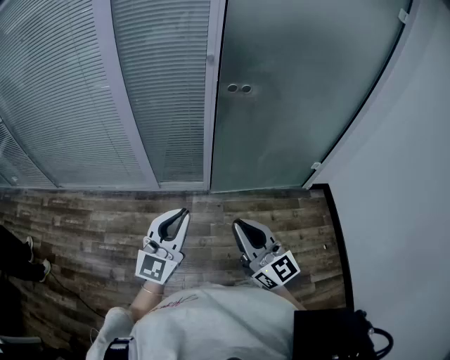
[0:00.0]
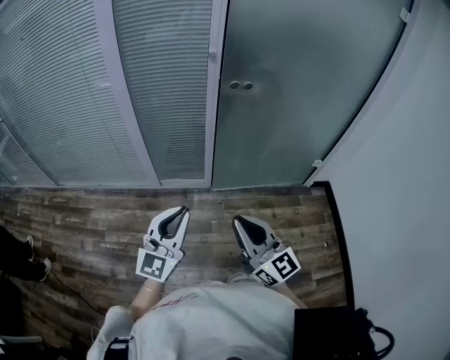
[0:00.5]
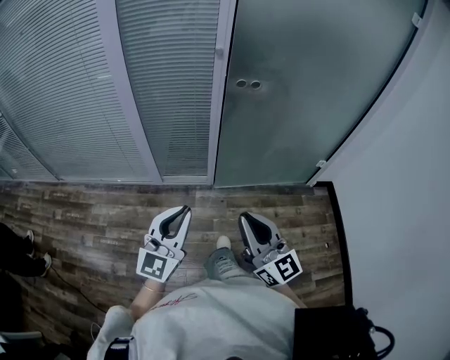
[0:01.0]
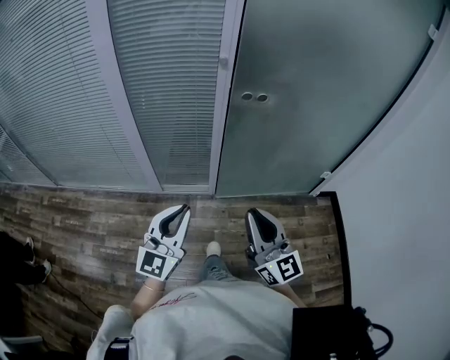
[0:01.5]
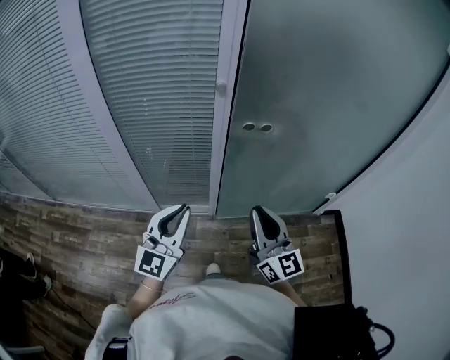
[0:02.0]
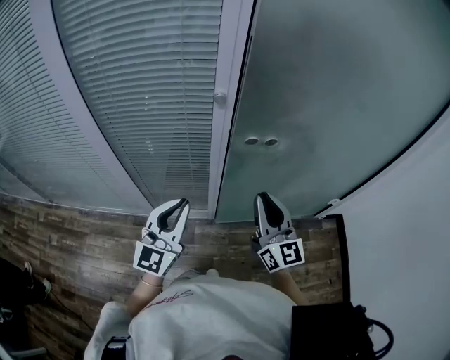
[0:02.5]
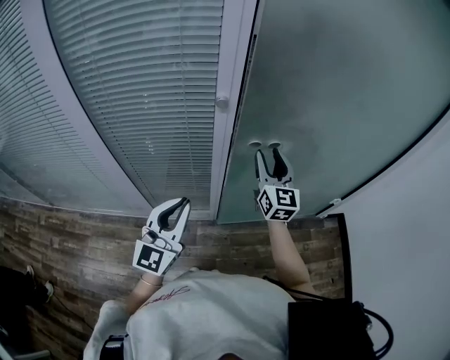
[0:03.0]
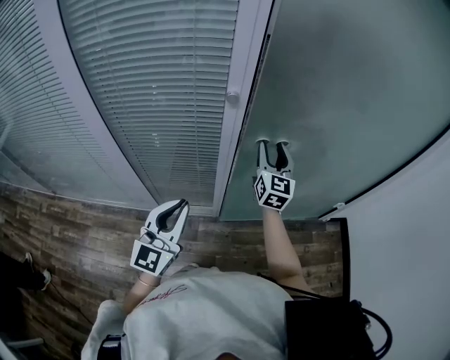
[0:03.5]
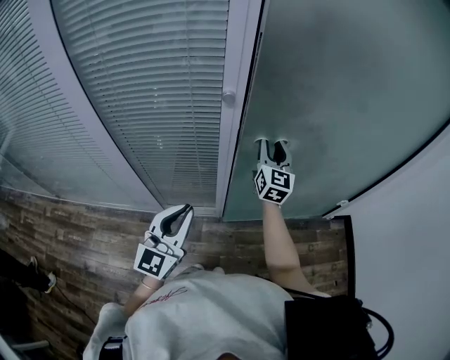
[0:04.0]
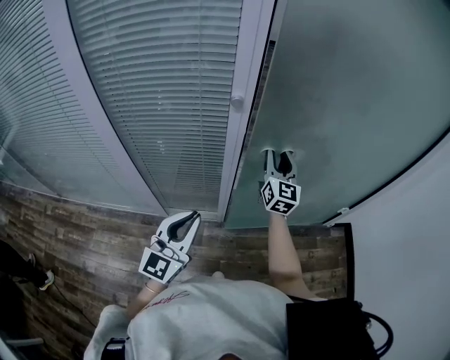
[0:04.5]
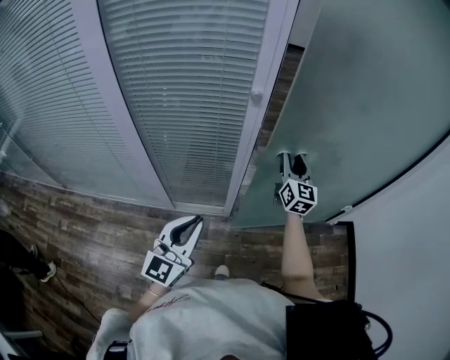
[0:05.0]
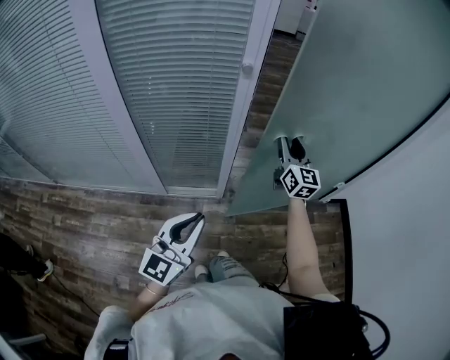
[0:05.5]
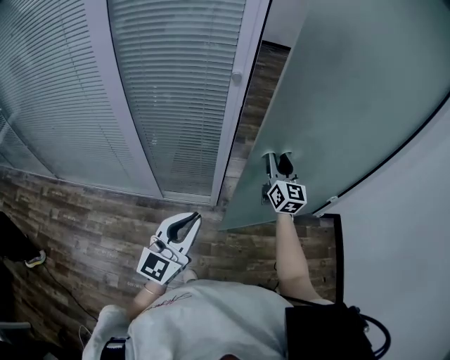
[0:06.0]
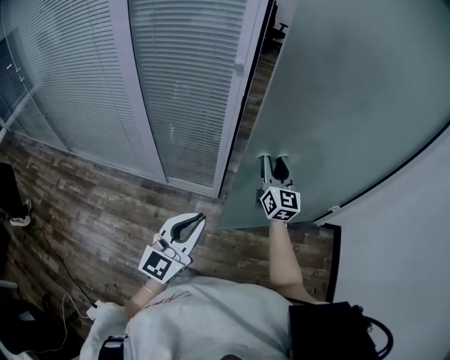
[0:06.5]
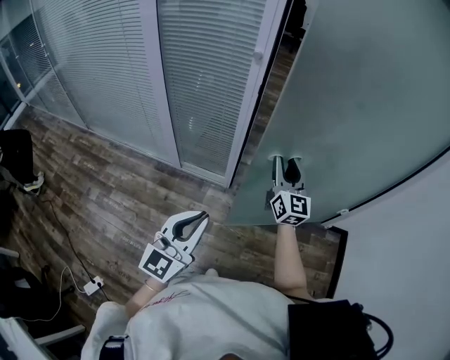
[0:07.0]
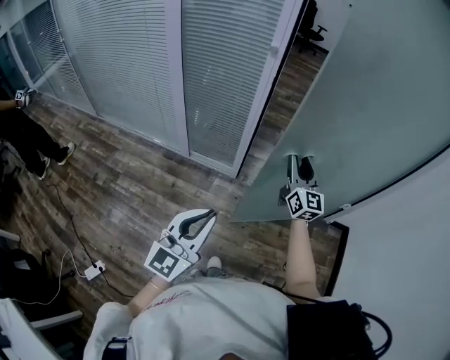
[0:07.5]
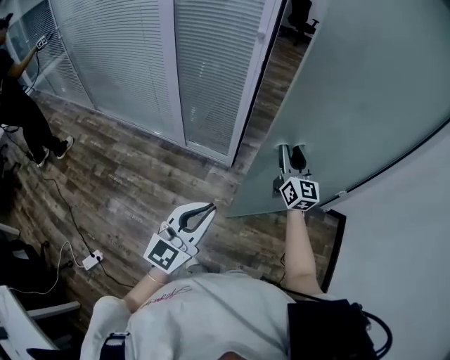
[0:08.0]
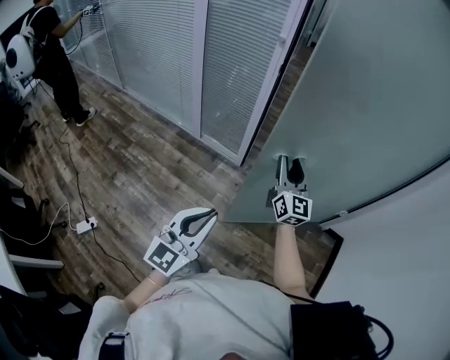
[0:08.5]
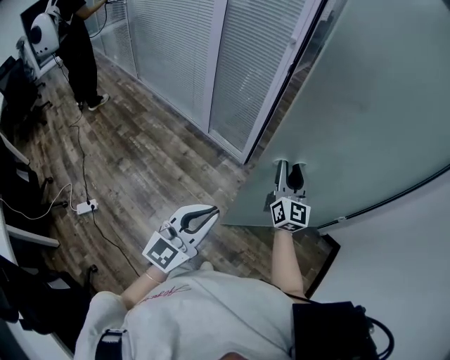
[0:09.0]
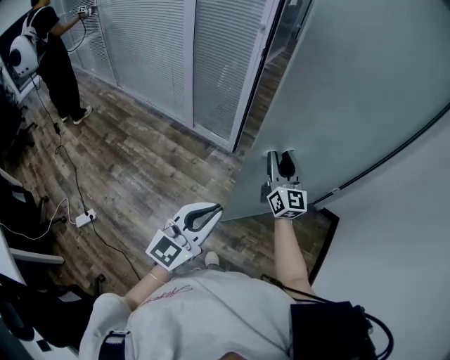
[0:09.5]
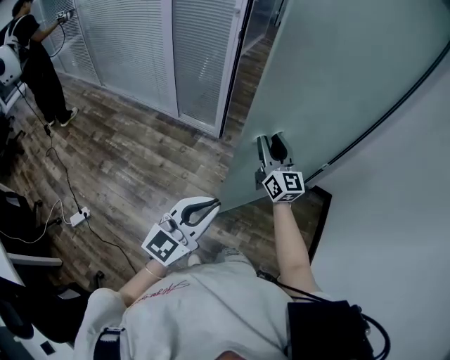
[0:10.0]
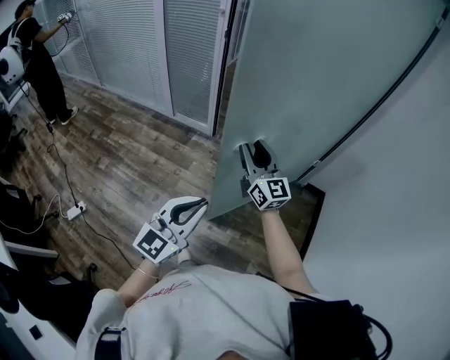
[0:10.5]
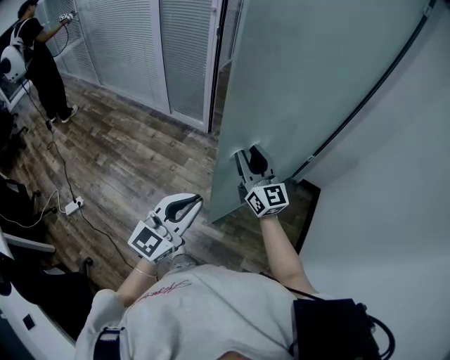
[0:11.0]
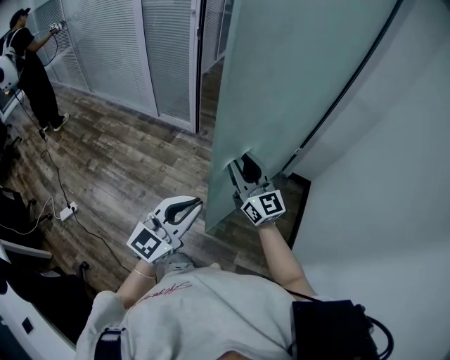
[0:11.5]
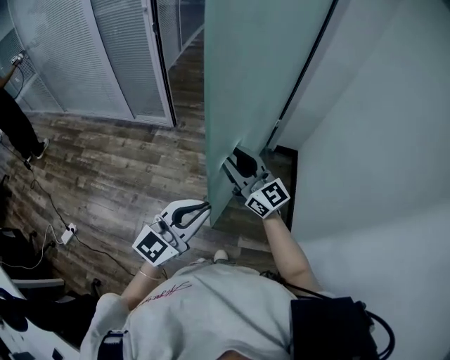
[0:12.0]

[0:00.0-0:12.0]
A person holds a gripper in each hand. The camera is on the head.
0:00.0 to 0:02.0: The grippers both shift forward by approximately 25 cm.
0:02.0 to 0:04.0: The right gripper shifts roughly 35 cm forward, rotates roughly 30 degrees, and opens up. Meanwhile the left gripper travels forward by about 10 cm.
0:04.0 to 0:06.0: Both grippers travel together backward, about 15 cm.
0:06.0 to 0:08.0: The left gripper is displaced backward and to the right by about 25 cm. The right gripper heads backward, covering roughly 15 cm.
0:08.0 to 0:10.0: The two grippers go about 25 cm backward and to the right.
0:10.0 to 0:12.0: The right gripper heads backward and to the right, covering approximately 30 cm. The left gripper moves to the right and backward, roughly 25 cm.

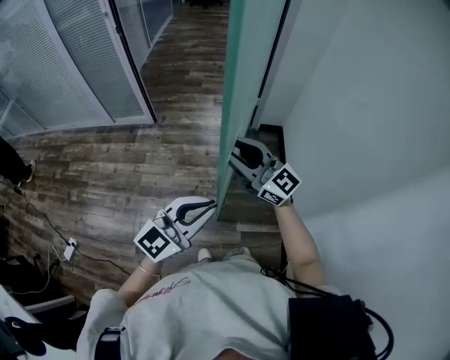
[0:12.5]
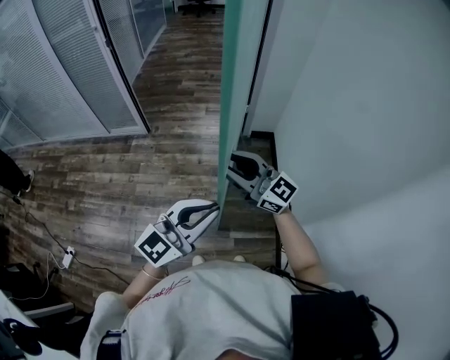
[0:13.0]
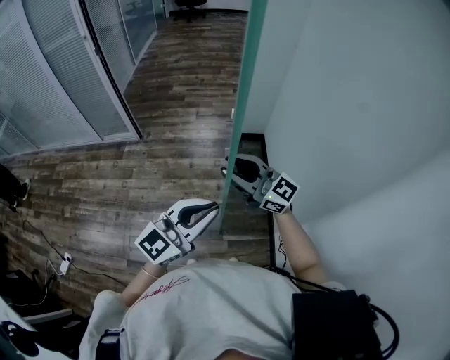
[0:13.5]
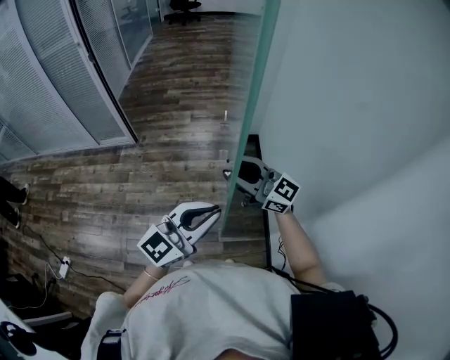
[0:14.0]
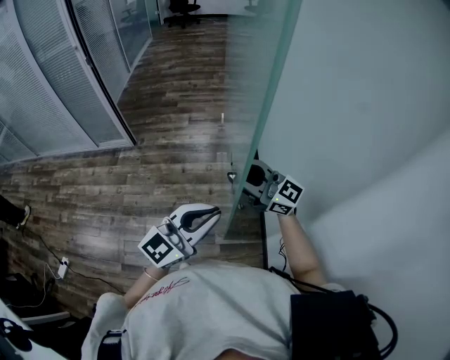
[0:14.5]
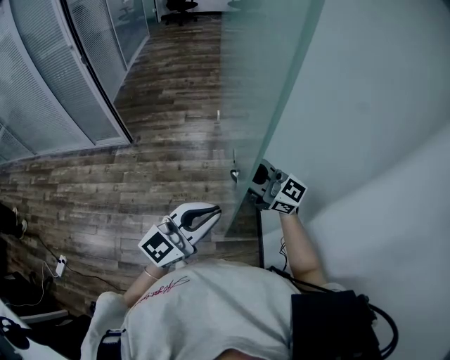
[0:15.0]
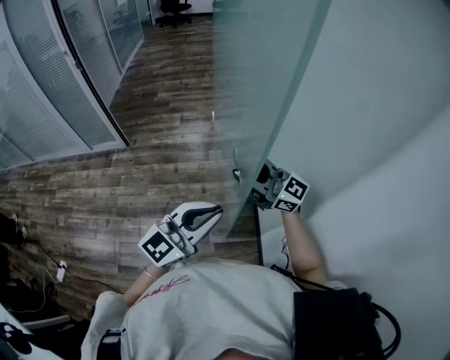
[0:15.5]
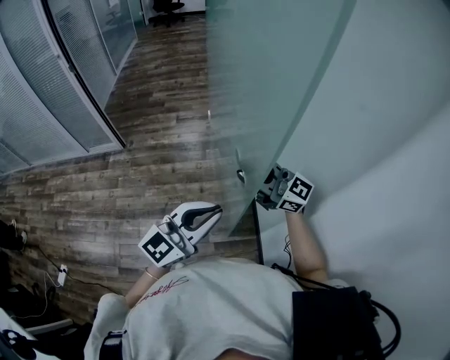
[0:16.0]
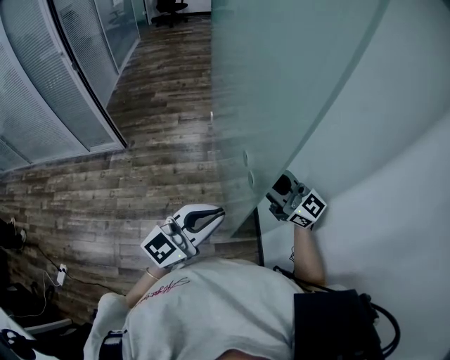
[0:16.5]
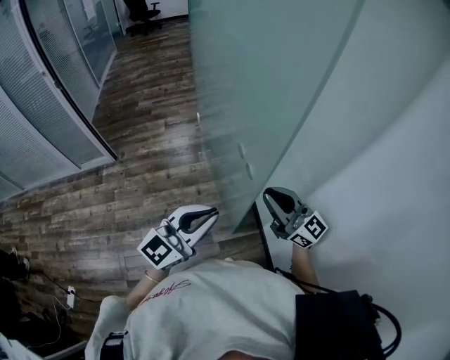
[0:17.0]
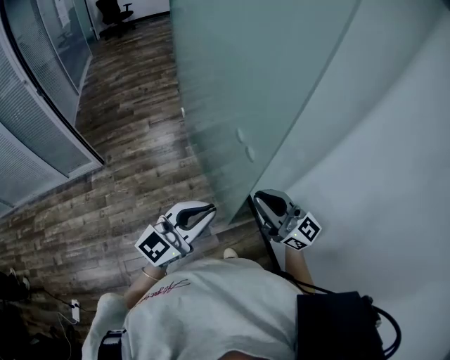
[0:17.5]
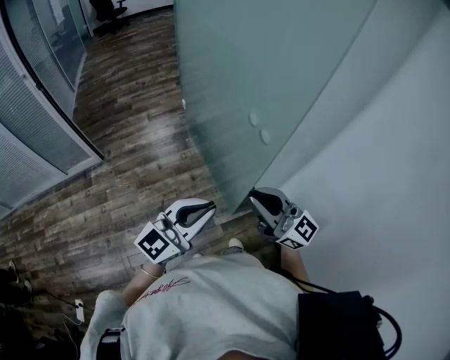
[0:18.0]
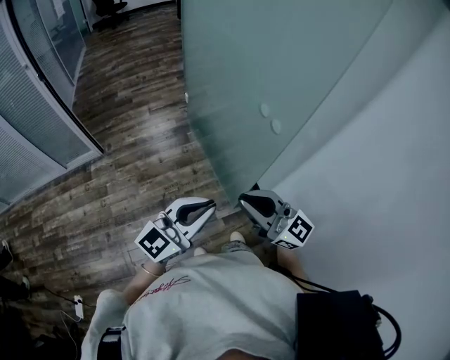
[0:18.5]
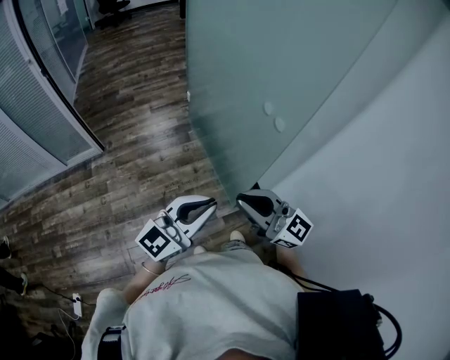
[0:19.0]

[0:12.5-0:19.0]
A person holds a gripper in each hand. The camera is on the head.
0:12.5 to 0:14.5: Both grippers travel together to the right, about 20 cm.
0:14.5 to 0:17.0: The right gripper is displaced to the right and backward by some 15 cm, swivels approximately 30 degrees, and closes up.
0:17.0 to 0:19.0: The right gripper heads to the left and backward, covering approximately 20 cm. The left gripper moves to the left and backward, some 10 cm.

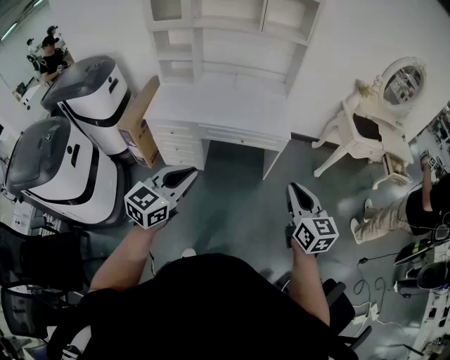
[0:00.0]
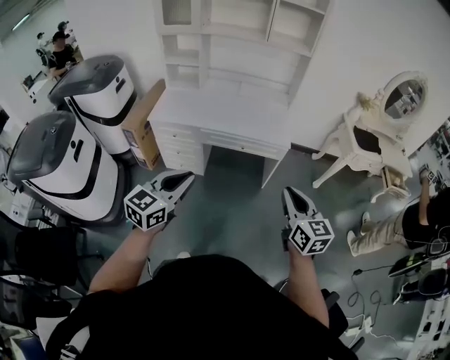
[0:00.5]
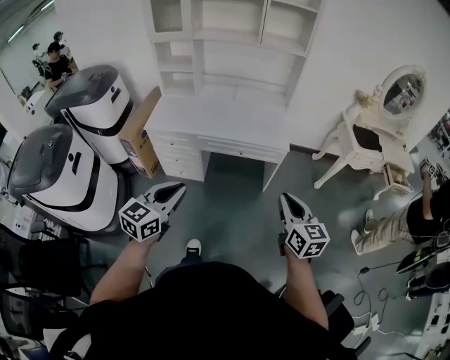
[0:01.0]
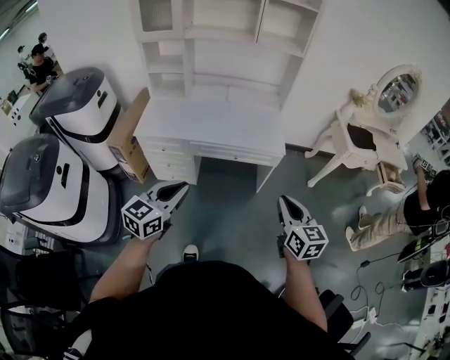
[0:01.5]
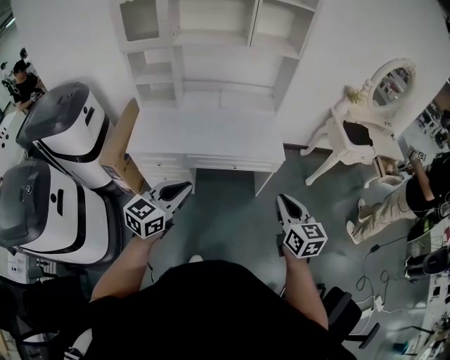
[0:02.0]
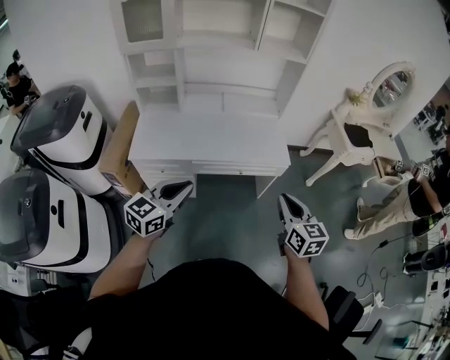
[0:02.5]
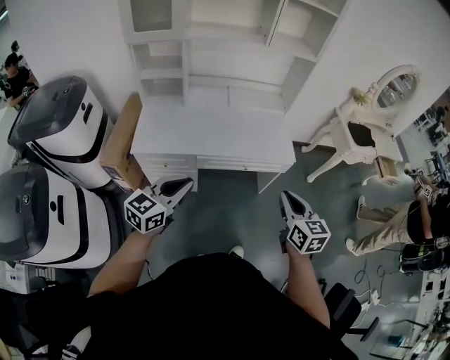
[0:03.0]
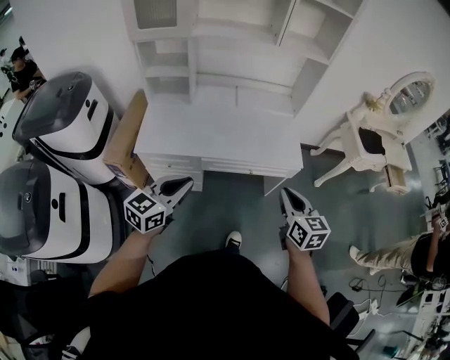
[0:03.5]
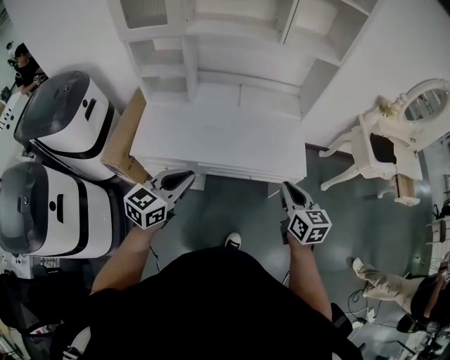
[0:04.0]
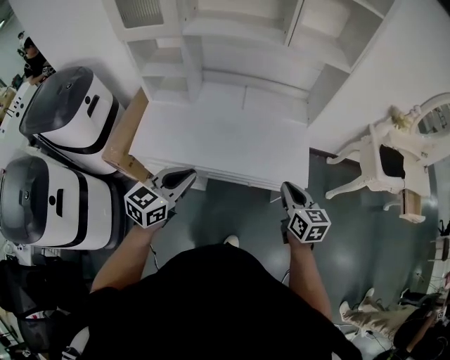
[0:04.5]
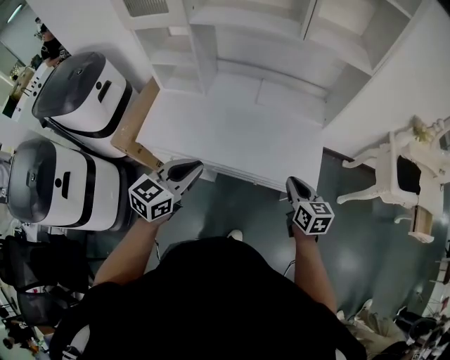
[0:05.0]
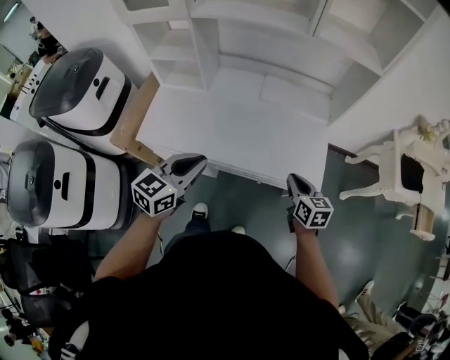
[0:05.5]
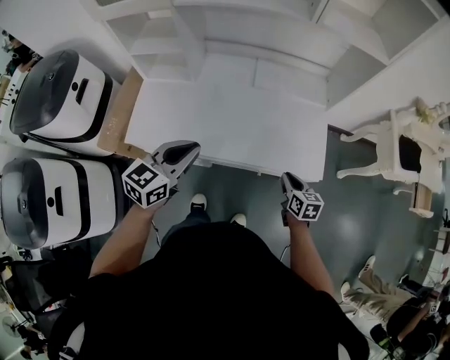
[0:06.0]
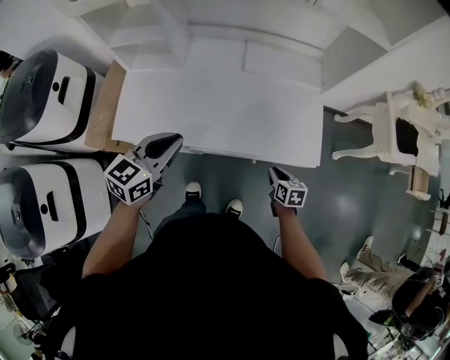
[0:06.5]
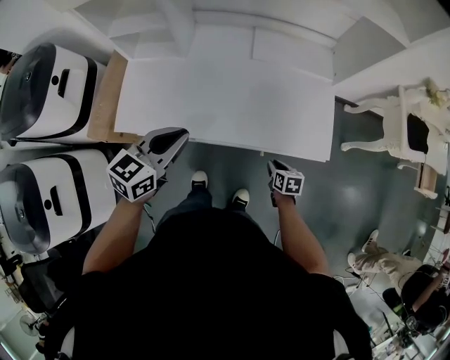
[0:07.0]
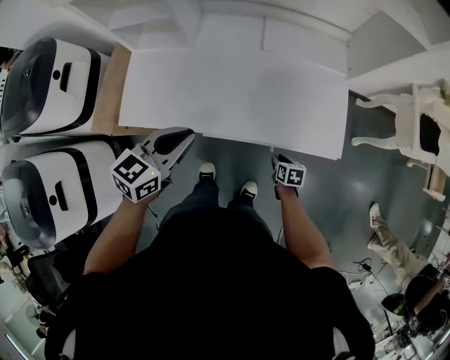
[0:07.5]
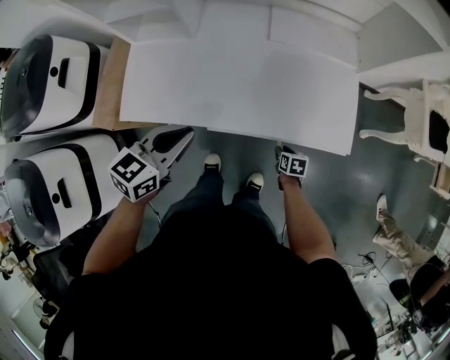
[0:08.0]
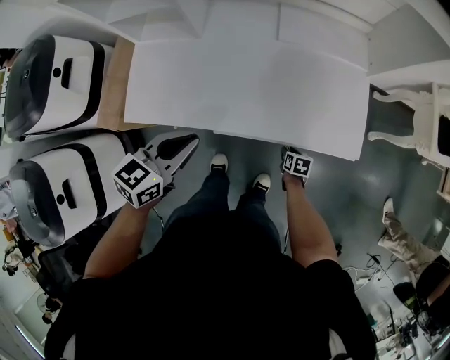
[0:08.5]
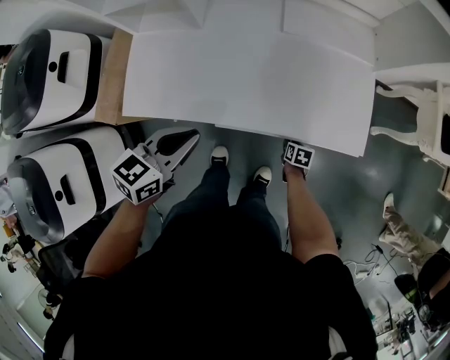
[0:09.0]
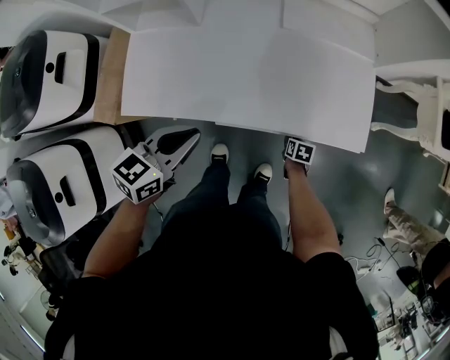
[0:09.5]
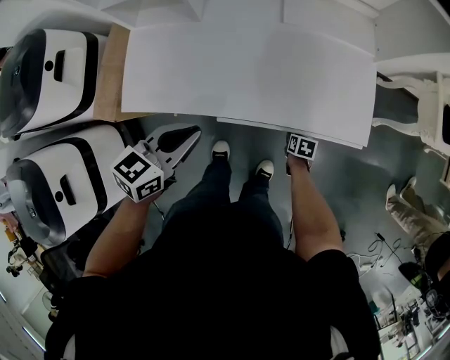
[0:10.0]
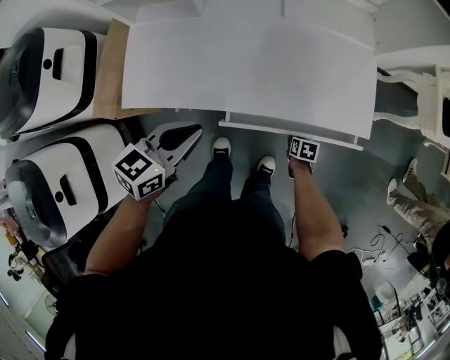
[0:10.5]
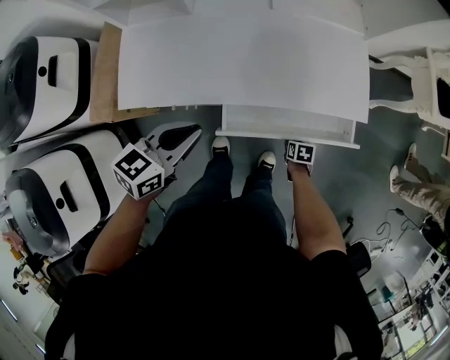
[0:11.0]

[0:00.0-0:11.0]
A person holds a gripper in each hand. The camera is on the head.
0:00.0 to 0:02.0: Both grippers move forward and to the left, some 15 cm.
0:02.0 to 0:03.5: Both grippers move to the left and forward, about 15 cm.
0:03.5 to 0:05.5: The left gripper is displaced forward by approximately 20 cm. The right gripper heads forward and downward, covering about 30 cm.
0:05.5 to 0:07.5: The right gripper goes approximately 30 cm downward, and turns by approximately 30 degrees; the left gripper goes approximately 15 cm downward, forward and to the left.
0:07.5 to 0:09.0: The left gripper goes approximately 5 cm downward. The right gripper is displaced downward by approximately 10 cm.
0:09.0 to 0:11.0: The left gripper is displaced backward by some 5 cm; the right gripper travels backward by roughly 10 cm.
